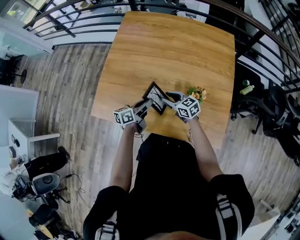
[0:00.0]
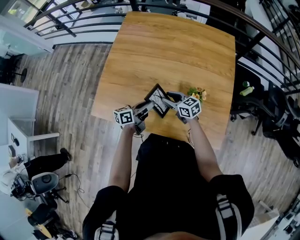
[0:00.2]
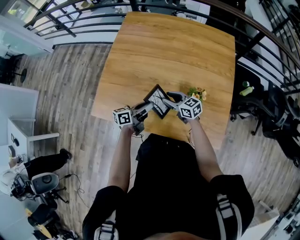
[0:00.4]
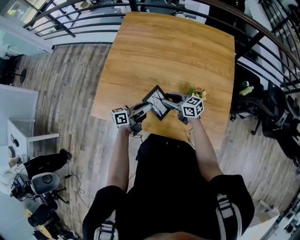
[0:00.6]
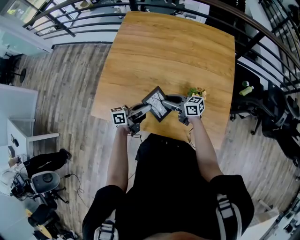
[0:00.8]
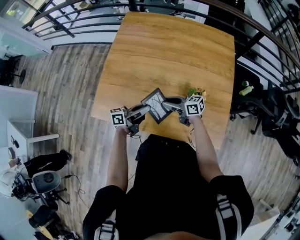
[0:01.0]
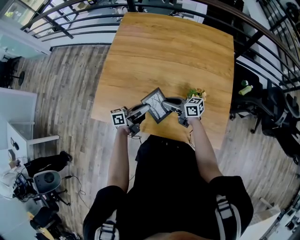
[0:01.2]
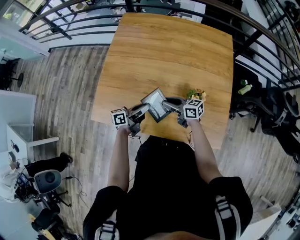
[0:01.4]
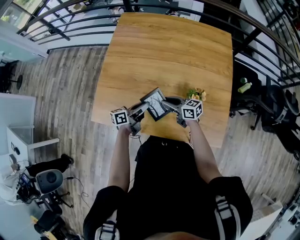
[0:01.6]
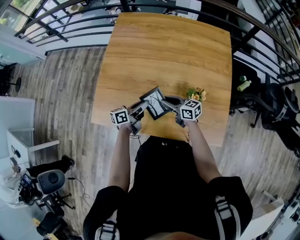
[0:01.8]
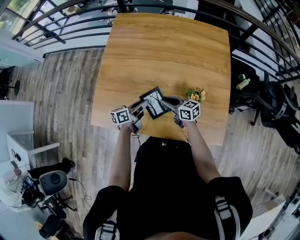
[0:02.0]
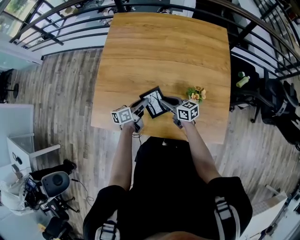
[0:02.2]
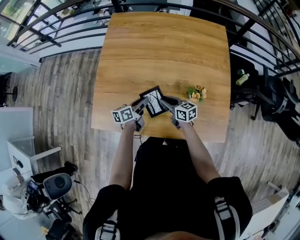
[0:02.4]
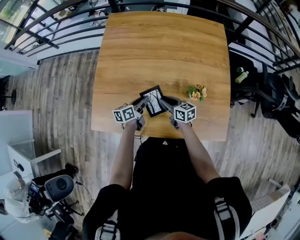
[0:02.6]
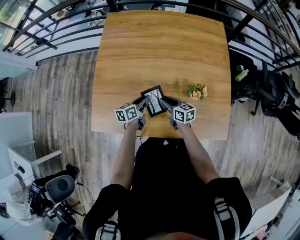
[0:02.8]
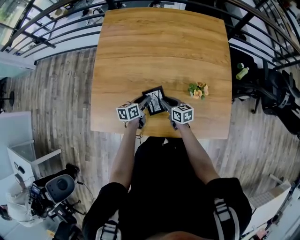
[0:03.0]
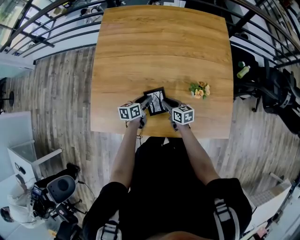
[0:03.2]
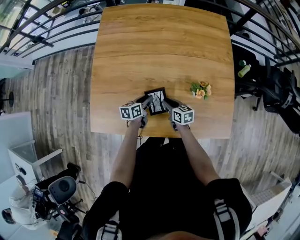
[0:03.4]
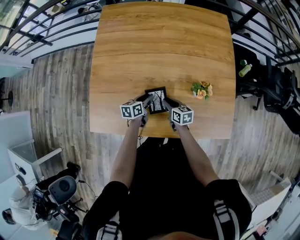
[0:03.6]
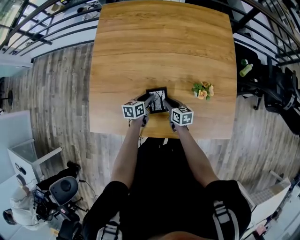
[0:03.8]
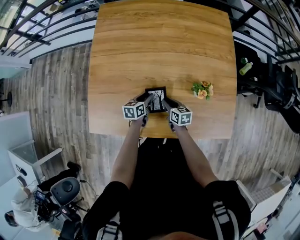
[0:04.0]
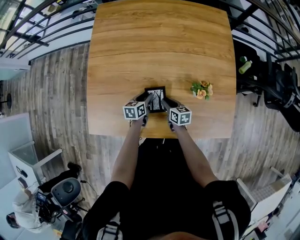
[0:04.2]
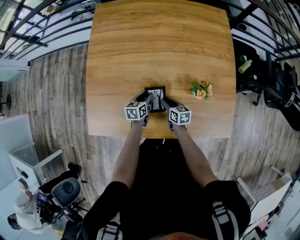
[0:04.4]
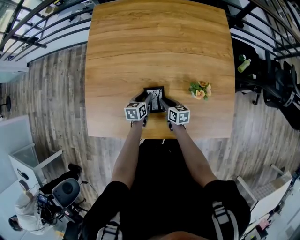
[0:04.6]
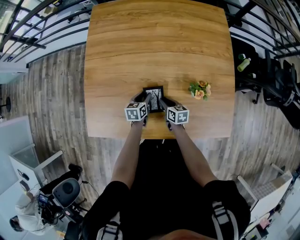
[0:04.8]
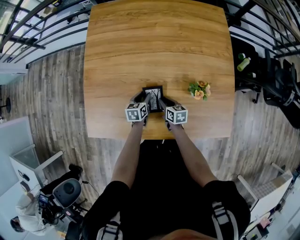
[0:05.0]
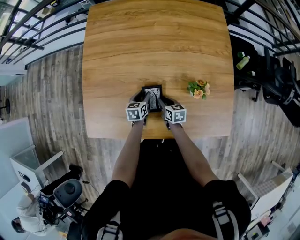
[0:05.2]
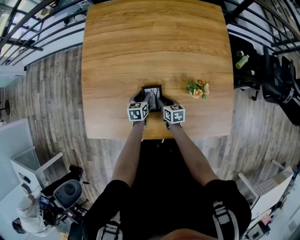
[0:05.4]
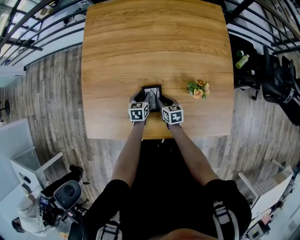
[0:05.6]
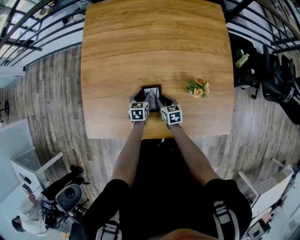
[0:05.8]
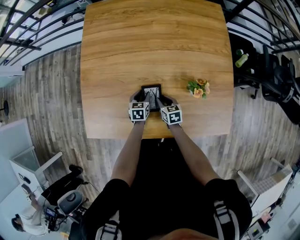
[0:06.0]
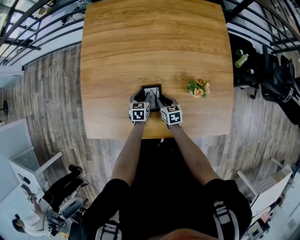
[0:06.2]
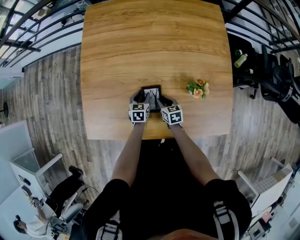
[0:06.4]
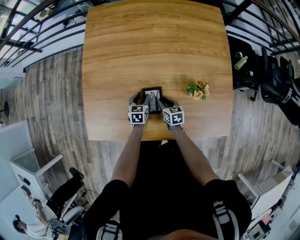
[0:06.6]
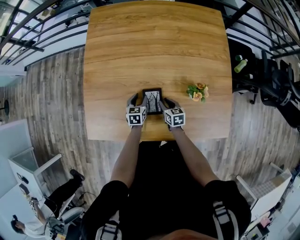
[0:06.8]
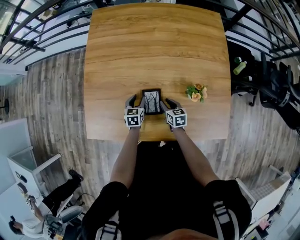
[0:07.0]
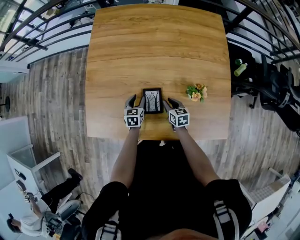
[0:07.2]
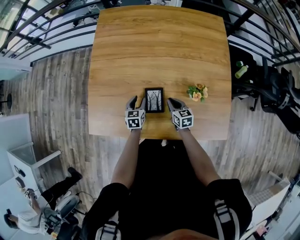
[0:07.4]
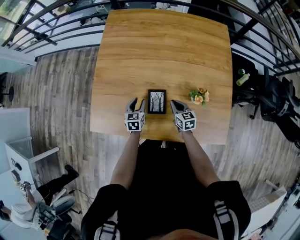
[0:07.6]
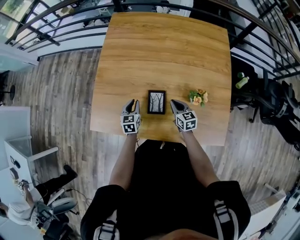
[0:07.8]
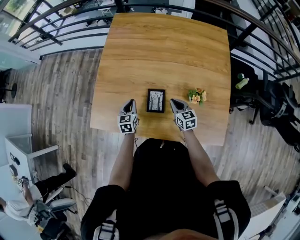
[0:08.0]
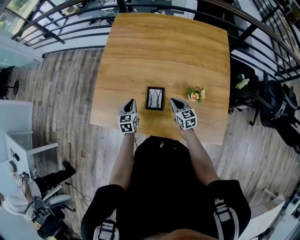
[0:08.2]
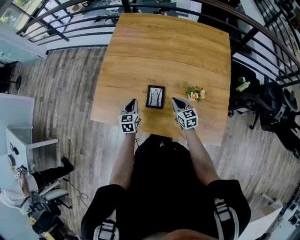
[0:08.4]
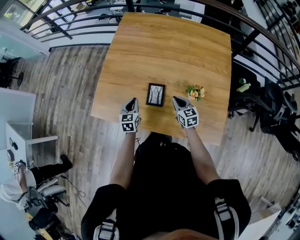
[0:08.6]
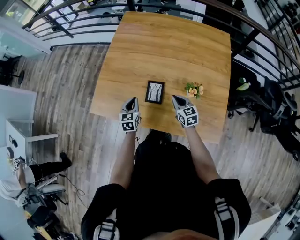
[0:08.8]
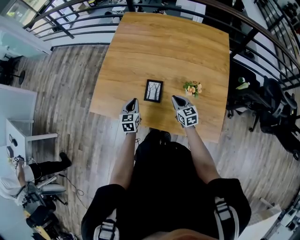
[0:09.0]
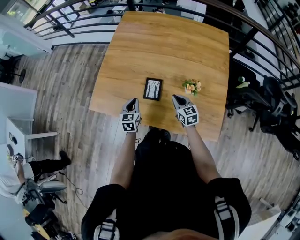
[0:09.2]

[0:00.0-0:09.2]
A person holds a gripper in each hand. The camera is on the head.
0:00.0 to 0:01.6: The right gripper changes its angle by approximately 20 degrees.
0:01.6 to 0:03.0: The left gripper shifts roughly 10 cm downward and forward, and changes its angle by some 20 degrees. Meanwhile the right gripper heads downward, covering roughly 10 cm, and turns by roughly 30 degrees.
0:03.0 to 0:04.6: The grippers both shift downward by roughly 5 cm.
0:04.6 to 0:06.2: The grippers stay close to where they were, moving slightly.
0:06.2 to 0:07.6: The left gripper heads upward and to the left, covering some 10 cm. The right gripper travels upward by roughly 10 cm.
0:07.6 to 0:09.2: The left gripper heads backward and upward, covering approximately 15 cm, and closes, while the right gripper heads upward and backward, covering some 10 cm.

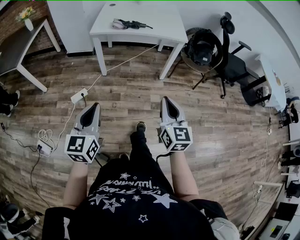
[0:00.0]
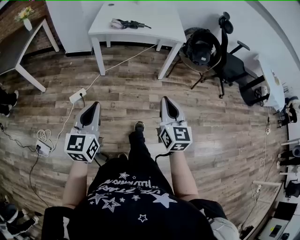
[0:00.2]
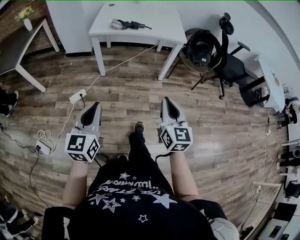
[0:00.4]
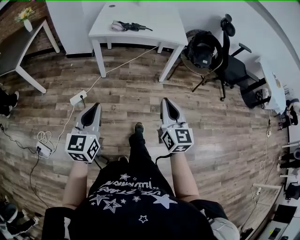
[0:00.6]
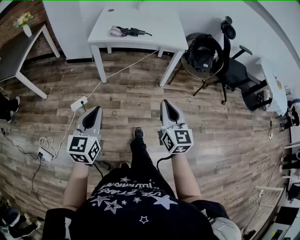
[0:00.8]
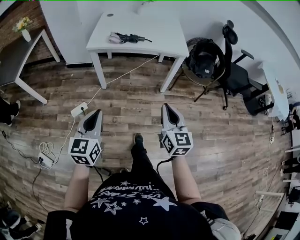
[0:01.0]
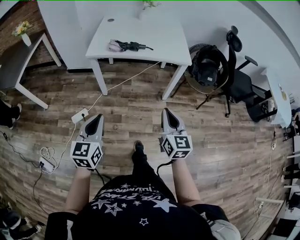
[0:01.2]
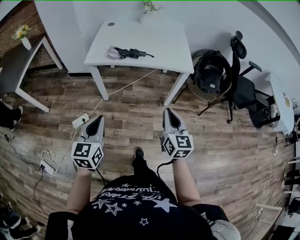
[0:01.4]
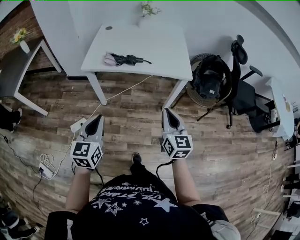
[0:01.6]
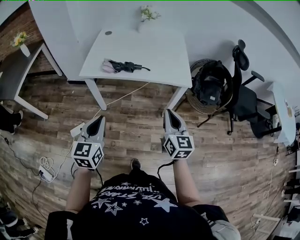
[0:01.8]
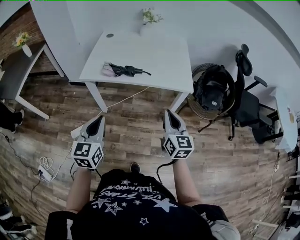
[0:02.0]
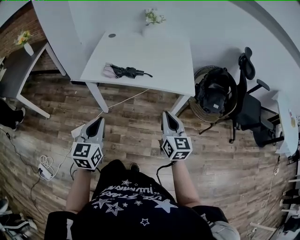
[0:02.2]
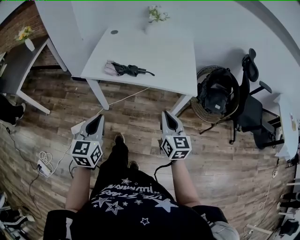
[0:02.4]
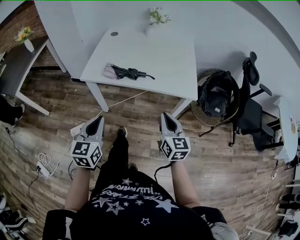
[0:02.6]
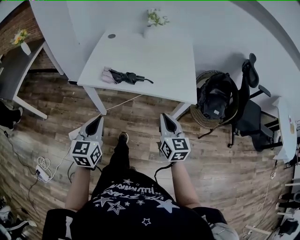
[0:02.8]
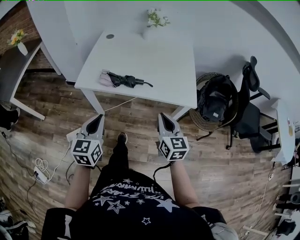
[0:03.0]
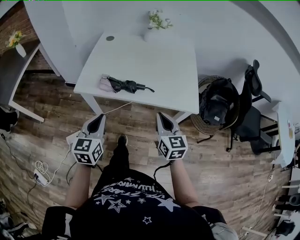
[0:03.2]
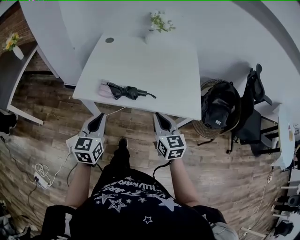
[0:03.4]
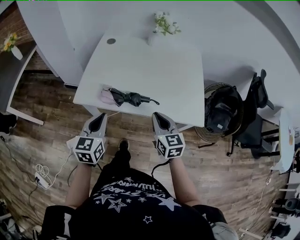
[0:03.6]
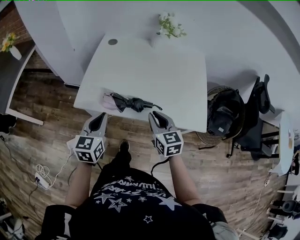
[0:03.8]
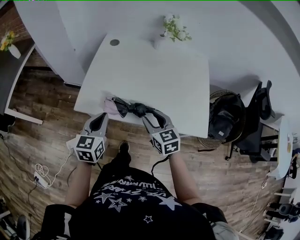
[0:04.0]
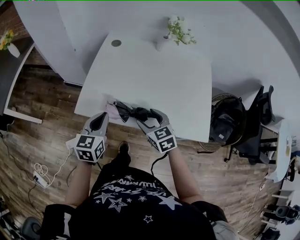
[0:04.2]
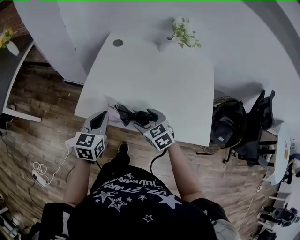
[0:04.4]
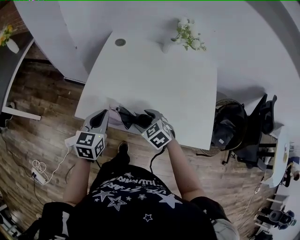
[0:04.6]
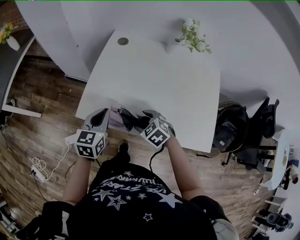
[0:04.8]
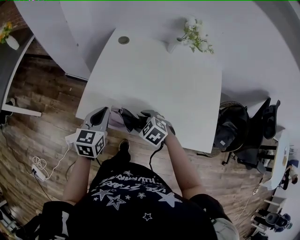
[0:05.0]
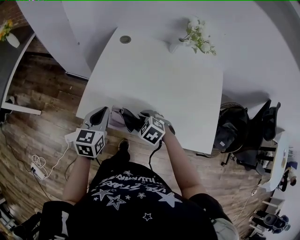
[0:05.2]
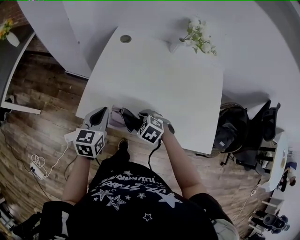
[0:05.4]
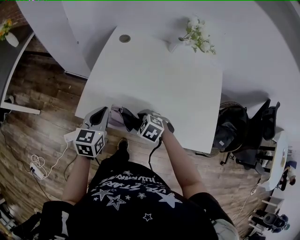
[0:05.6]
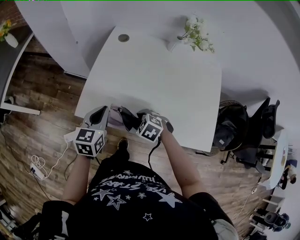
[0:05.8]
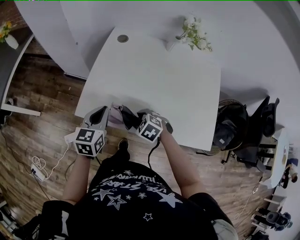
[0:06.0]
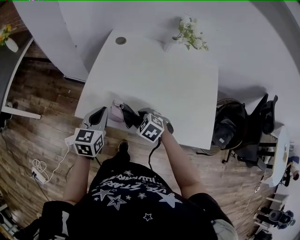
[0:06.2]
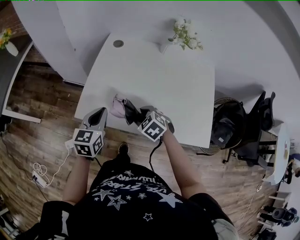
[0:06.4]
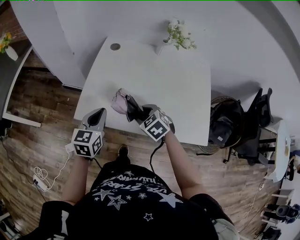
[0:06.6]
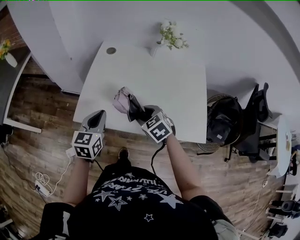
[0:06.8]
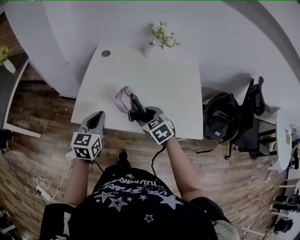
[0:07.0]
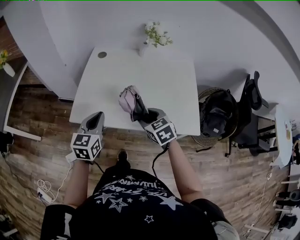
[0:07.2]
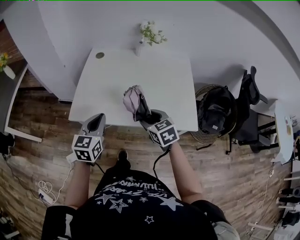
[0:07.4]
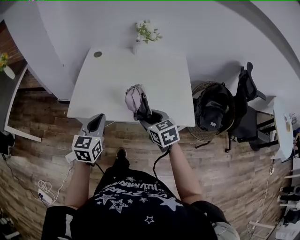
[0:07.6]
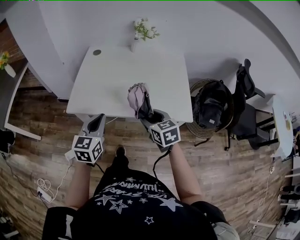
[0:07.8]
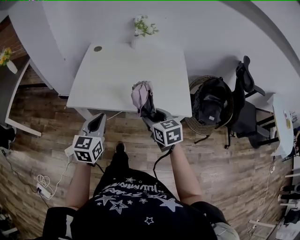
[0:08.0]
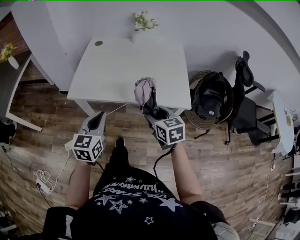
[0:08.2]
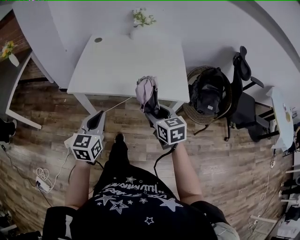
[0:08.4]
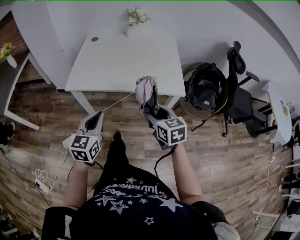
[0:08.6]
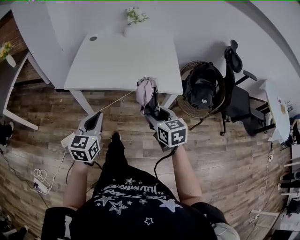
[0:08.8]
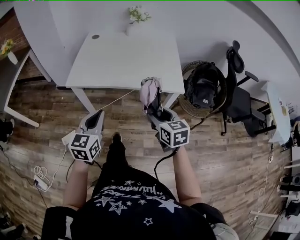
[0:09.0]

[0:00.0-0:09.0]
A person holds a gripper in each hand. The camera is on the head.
0:00.0 to 0:01.6: Both grippers move forward, about 30 cm.
0:01.6 to 0:03.0: The grippers both shift forward by roughly 20 cm.
0:03.0 to 0:04.4: The left gripper goes some 25 cm forward. Meanwhile the right gripper moves forward and to the left, roughly 30 cm, tips its fingers downward by approximately 30 degrees, and opens its fingers.
0:04.4 to 0:06.0: The right gripper shifts roughly 5 cm downward, and rotates some 30 degrees.
0:06.0 to 0:07.6: The left gripper travels backward, upward and to the right by roughly 20 cm. The right gripper heads upward, to the right and backward, covering about 25 cm, and rotates approximately 50 degrees.
0:07.6 to 0:09.0: Both grippers travel together backward, roughly 20 cm.

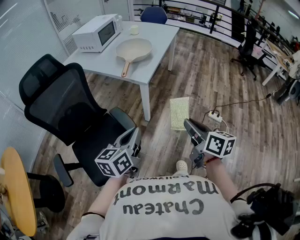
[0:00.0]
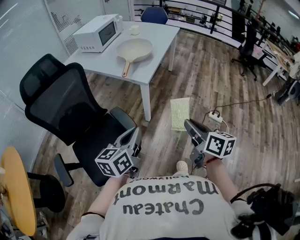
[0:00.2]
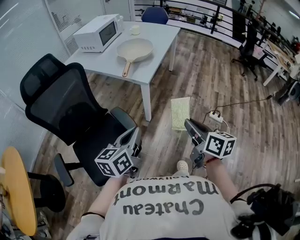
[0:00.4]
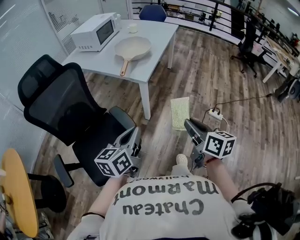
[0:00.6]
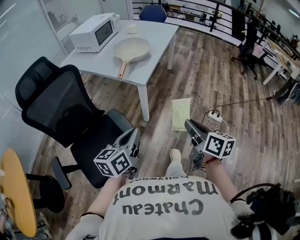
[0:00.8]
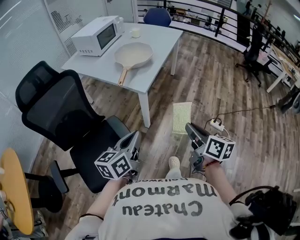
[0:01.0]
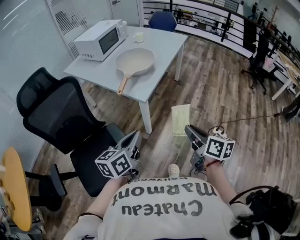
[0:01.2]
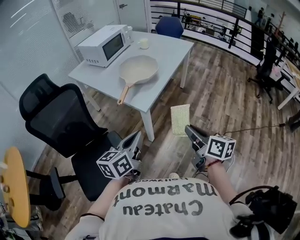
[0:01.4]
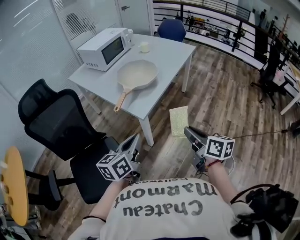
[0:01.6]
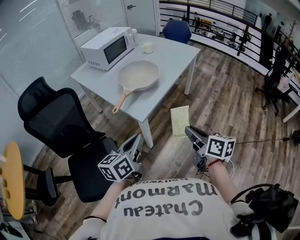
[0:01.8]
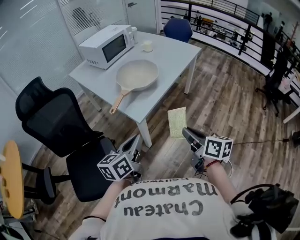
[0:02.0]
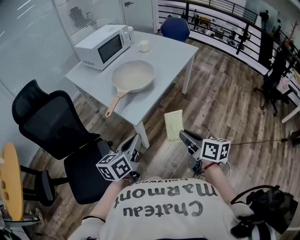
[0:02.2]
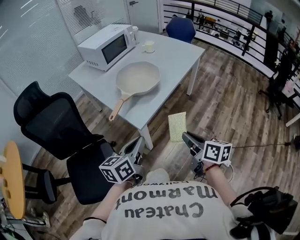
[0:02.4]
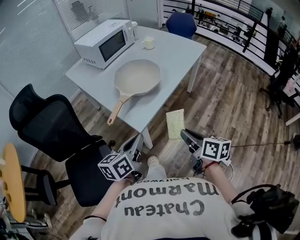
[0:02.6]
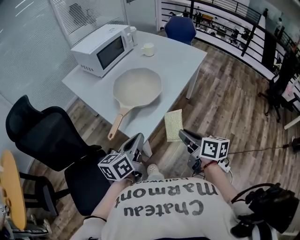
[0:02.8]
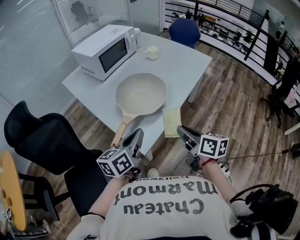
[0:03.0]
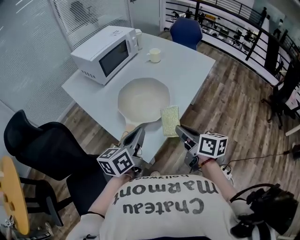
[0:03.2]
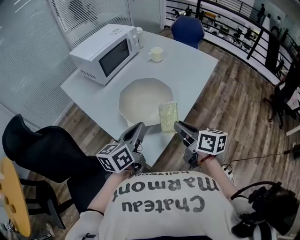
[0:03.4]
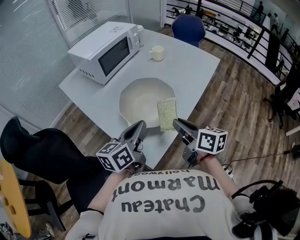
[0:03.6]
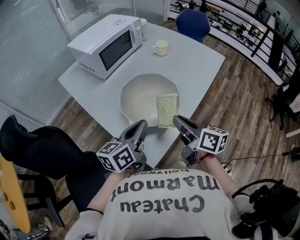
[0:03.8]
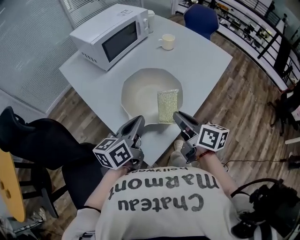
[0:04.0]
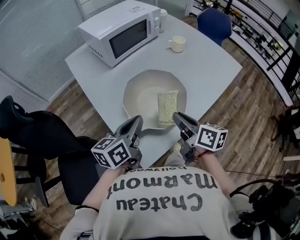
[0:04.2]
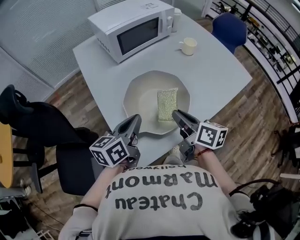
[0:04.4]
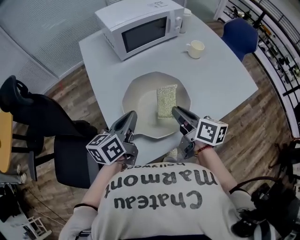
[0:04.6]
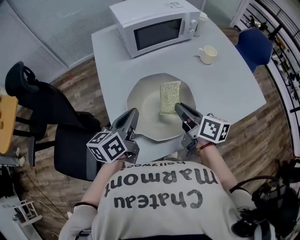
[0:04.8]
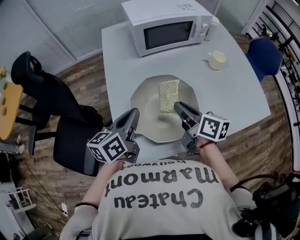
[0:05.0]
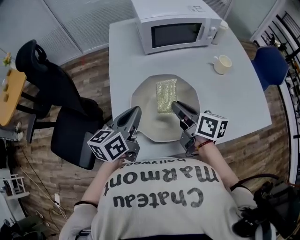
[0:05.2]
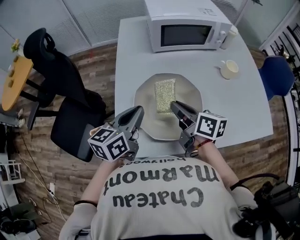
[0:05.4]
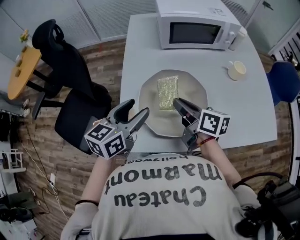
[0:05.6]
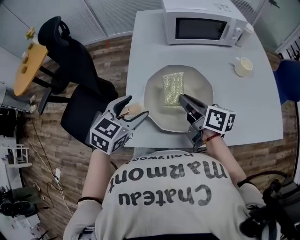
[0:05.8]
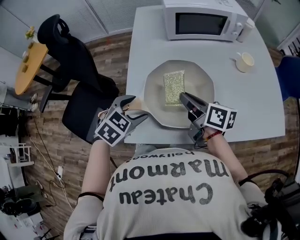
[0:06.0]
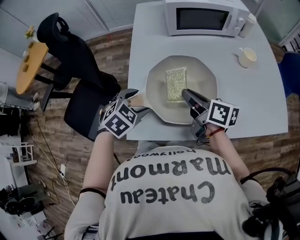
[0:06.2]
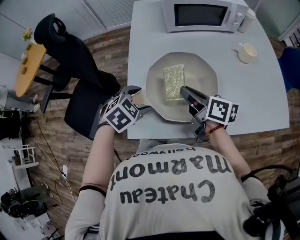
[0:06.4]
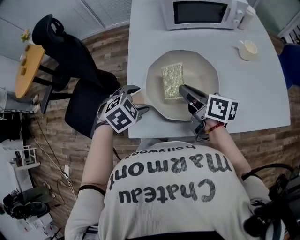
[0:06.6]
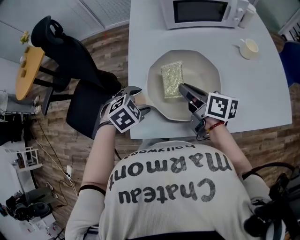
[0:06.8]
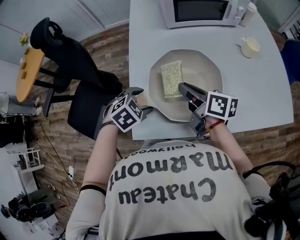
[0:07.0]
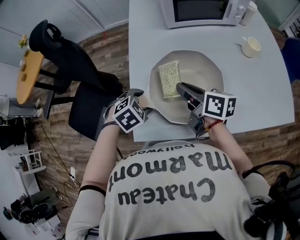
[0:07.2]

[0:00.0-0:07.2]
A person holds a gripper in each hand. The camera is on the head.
0:00.0 to 0:01.4: The left gripper shifts about 20 cm forward and to the right; the right gripper travels forward by approximately 20 cm.
0:01.4 to 0:02.8: Both grippers move forward, about 25 cm.
0:02.8 to 0:04.4: The two grippers go approximately 25 cm forward.
0:04.4 to 0:05.8: The left gripper swivels roughly 40 degrees, and opens. The right gripper moves approximately 10 cm, and rotates about 40 degrees.
0:05.8 to 0:07.2: The left gripper travels downward by about 10 cm, and tilts its fingers some 40 degrees downward.
